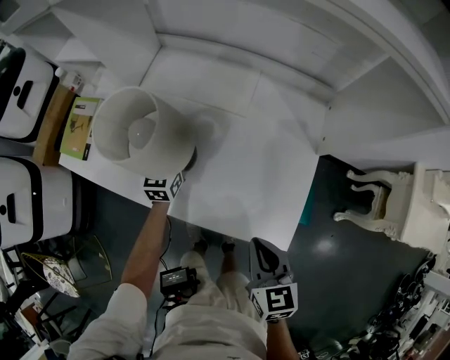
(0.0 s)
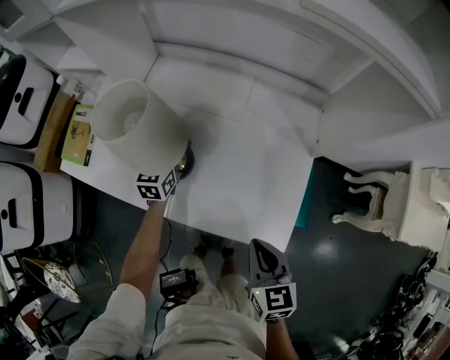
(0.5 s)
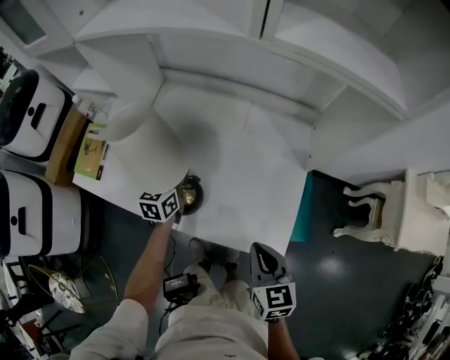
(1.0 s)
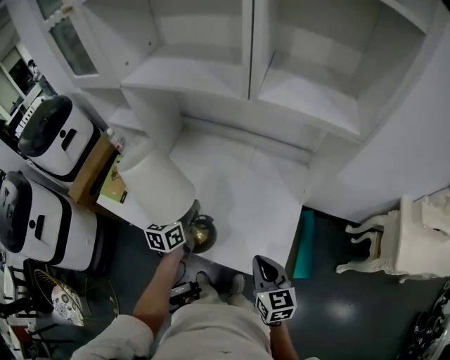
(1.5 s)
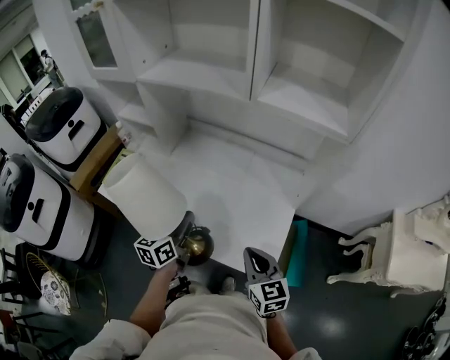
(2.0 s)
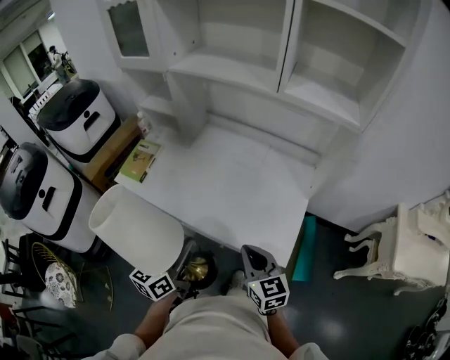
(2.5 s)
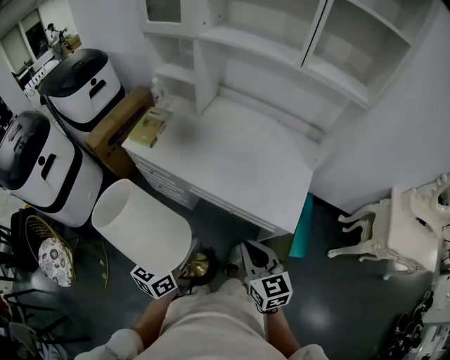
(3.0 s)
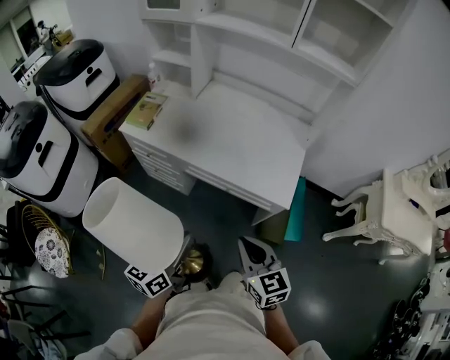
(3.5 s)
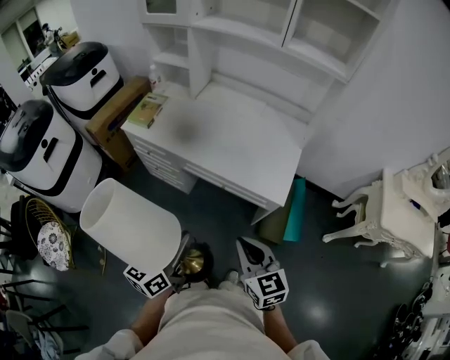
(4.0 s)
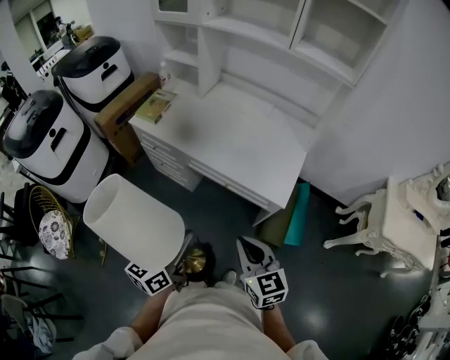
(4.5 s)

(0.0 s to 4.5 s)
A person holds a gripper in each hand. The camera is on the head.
0.0 s - 2.0 s: The right gripper travels upward by some 10 cm; the left gripper is displaced backward and upward by approximately 25 cm, rotates roughly 30 degrees, and closes.
2.0 s - 4.5 s: The two grippers go roughly 40 cm backward.

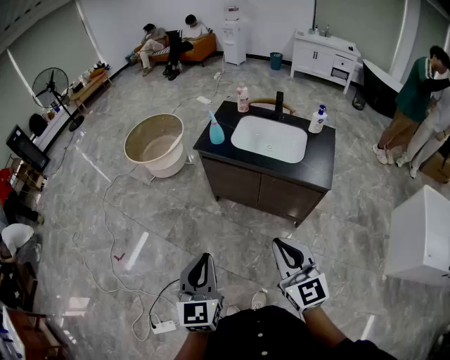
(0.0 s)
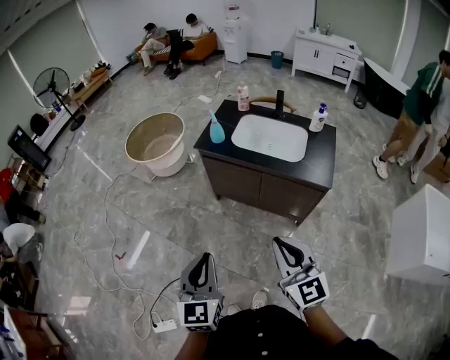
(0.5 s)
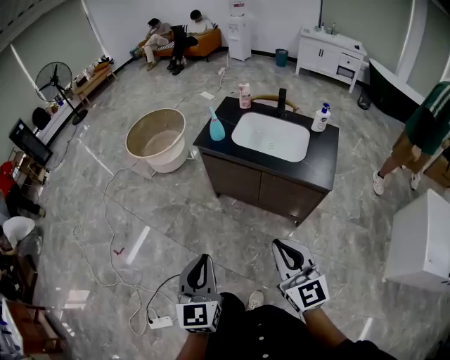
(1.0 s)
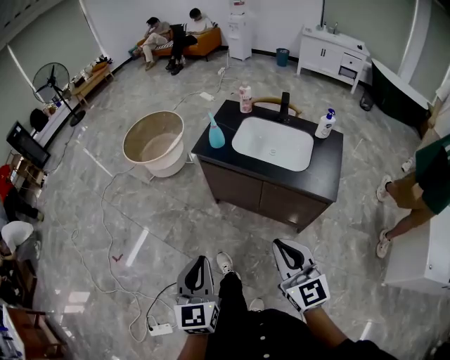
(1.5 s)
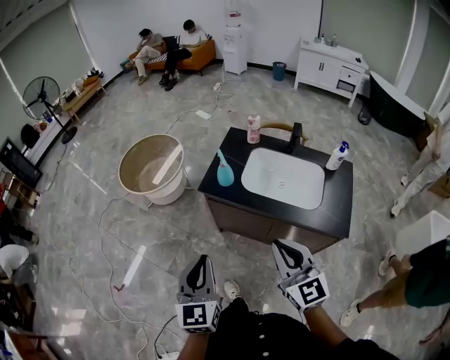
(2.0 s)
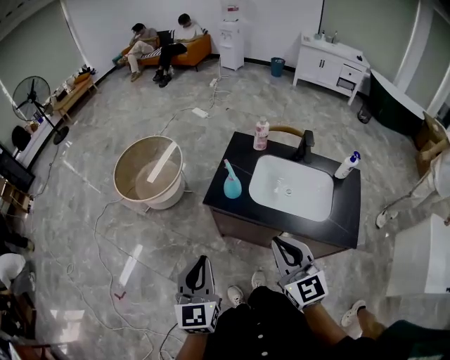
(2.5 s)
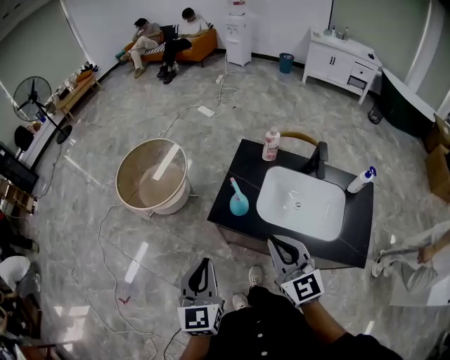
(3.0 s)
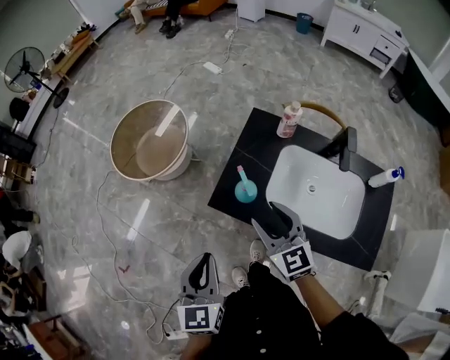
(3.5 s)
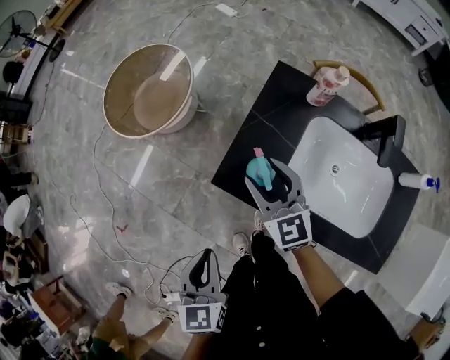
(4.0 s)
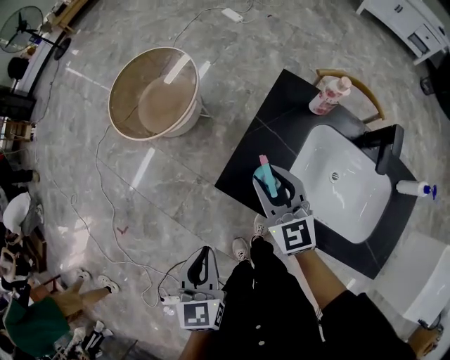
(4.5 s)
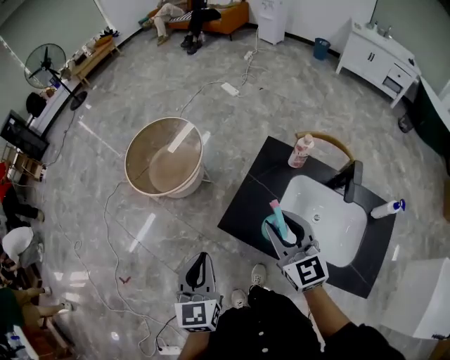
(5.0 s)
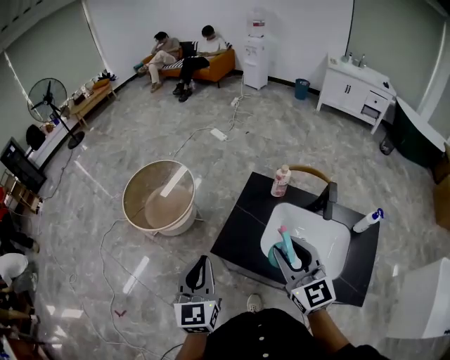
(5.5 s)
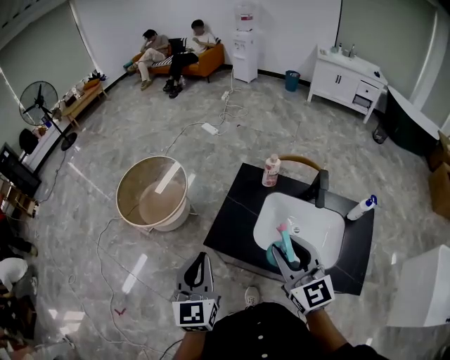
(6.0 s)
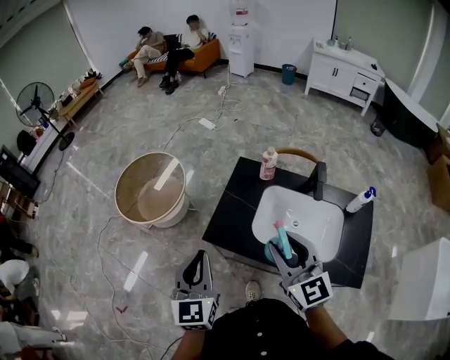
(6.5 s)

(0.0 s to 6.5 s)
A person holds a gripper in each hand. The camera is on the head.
0.0 s - 2.0 s: Both grippers travel together forward, about 25 cm.
2.0 s - 4.5 s: The right gripper shifts roughly 50 cm forward and downward, and opens up, while the left gripper goes roughly 30 cm forward and downward, and swivels approximately 30 degrees.
4.5 s - 6.5 s: The left gripper travels upward by about 15 cm, and rotates some 30 degrees. Meanwhile the right gripper heads upward, backward and to the right, covering about 30 cm.

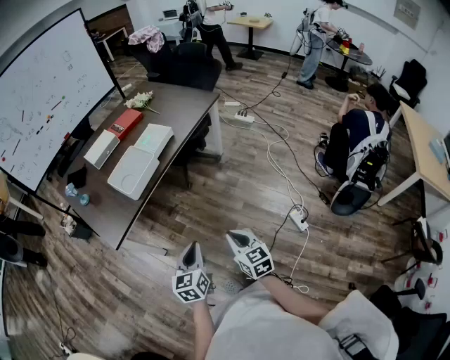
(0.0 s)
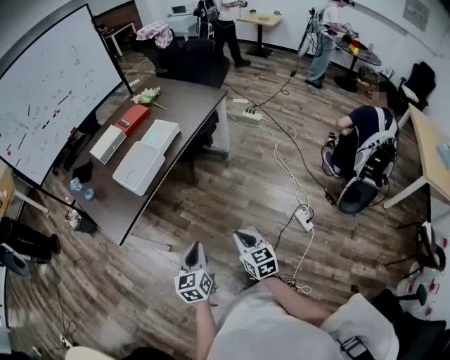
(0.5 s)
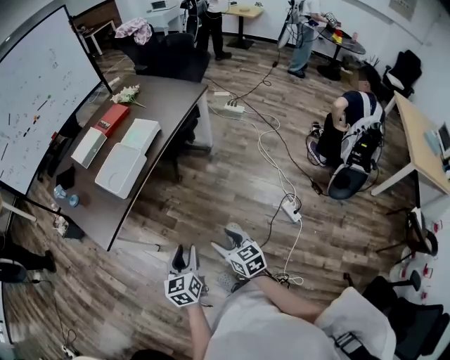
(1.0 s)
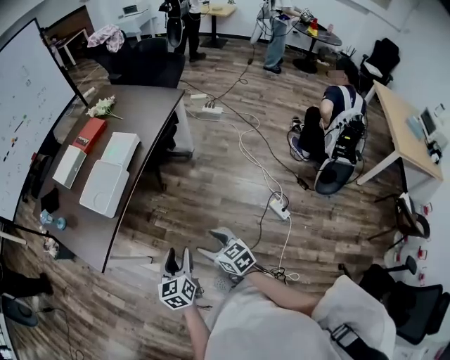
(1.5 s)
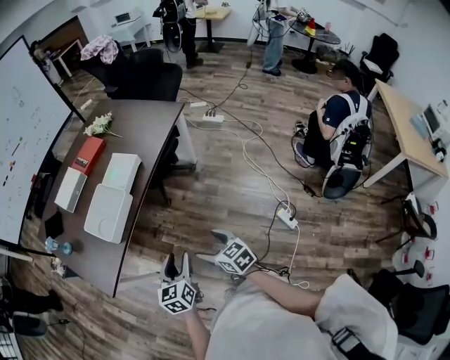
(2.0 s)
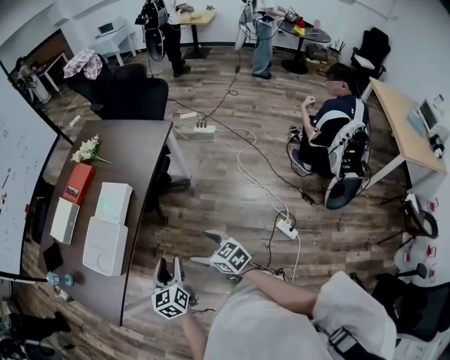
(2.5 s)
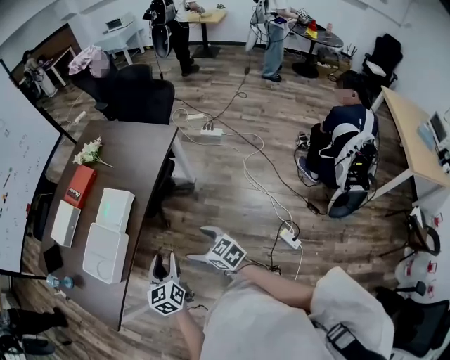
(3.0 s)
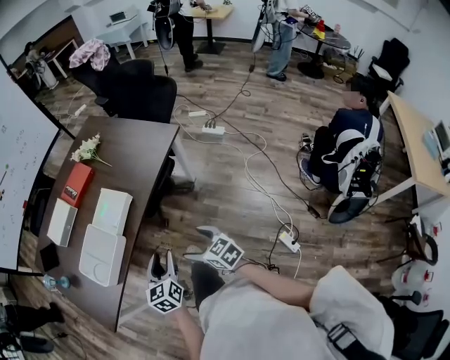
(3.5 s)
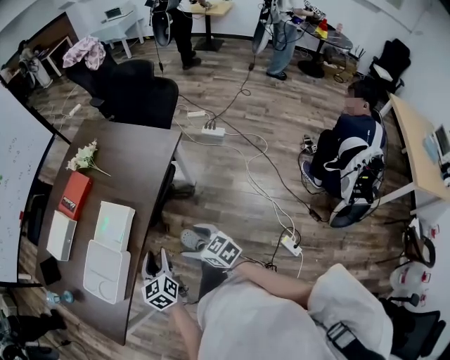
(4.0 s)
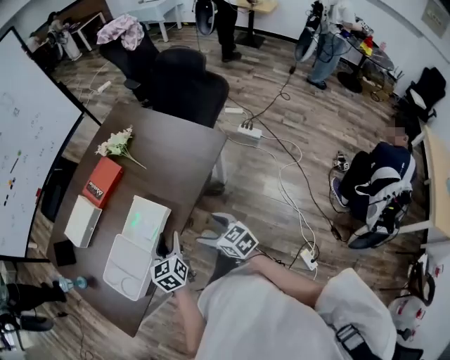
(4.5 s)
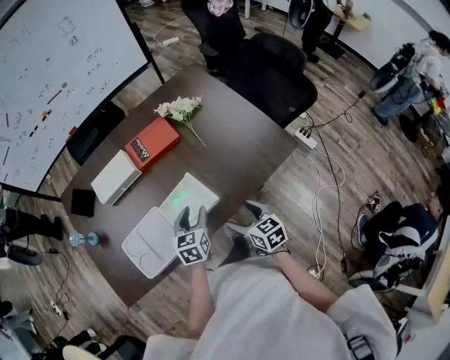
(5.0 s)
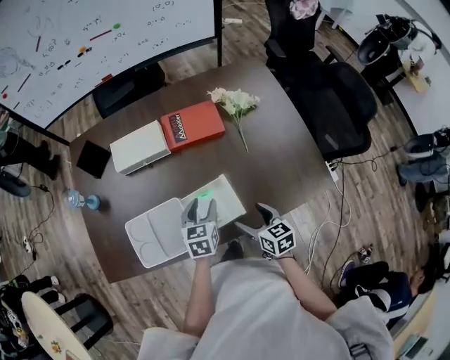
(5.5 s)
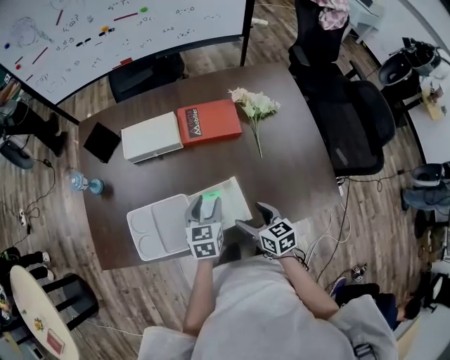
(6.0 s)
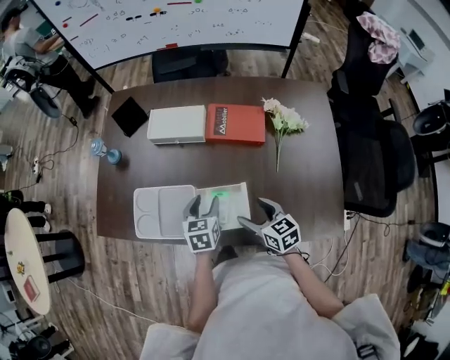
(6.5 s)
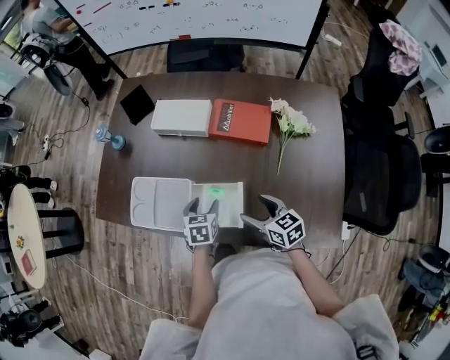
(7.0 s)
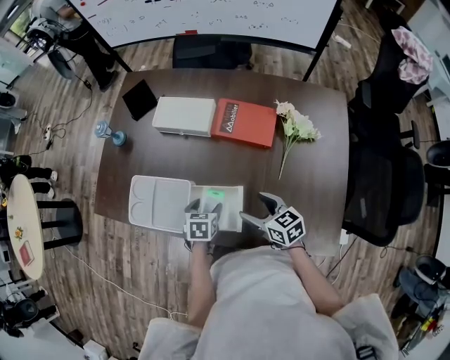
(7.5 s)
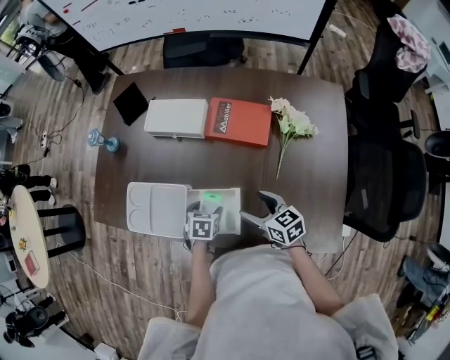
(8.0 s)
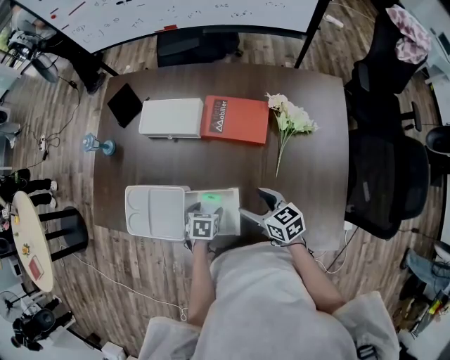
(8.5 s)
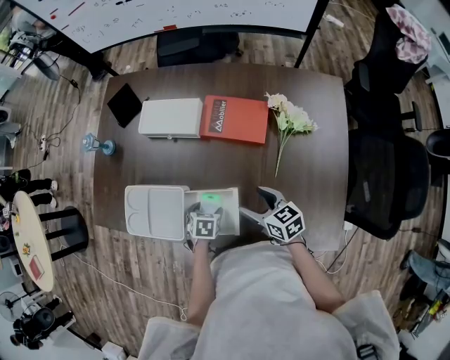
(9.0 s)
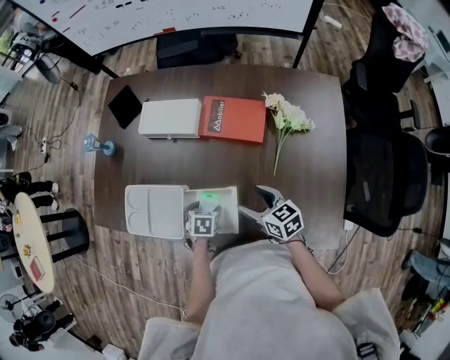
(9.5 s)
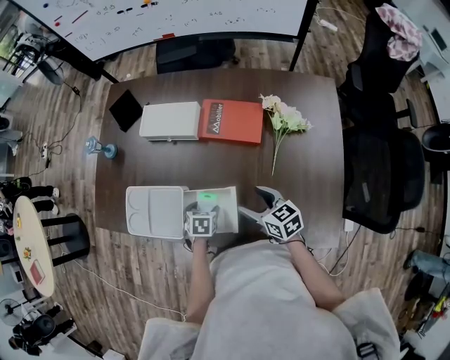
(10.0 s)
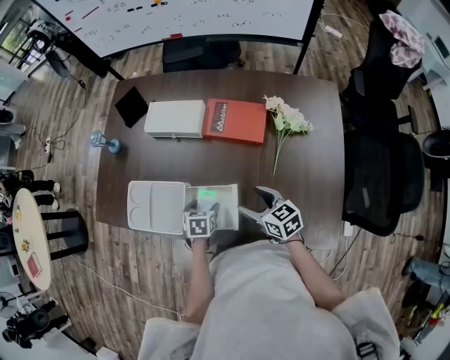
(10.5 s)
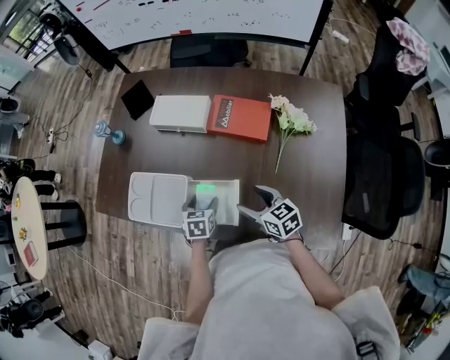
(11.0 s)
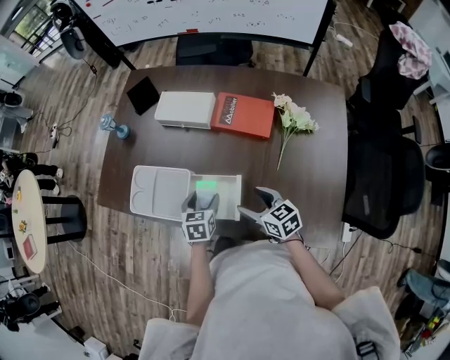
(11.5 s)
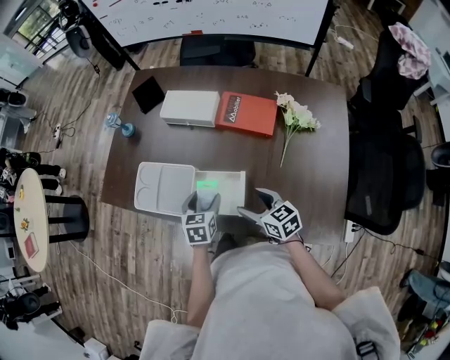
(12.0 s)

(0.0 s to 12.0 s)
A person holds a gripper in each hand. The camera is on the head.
0.0 s - 2.0 s: The two grippers go approximately 15 cm forward. The left gripper opens its fingers. Meanwhile the right gripper opens its fingers.
2.0 s - 4.0 s: The left gripper moves forward, roughly 30 cm, while the right gripper heads forward and to the right, covering some 35 cm.
4.0 s - 6.0 s: The right gripper changes place by roughly 35 cm, and rotates roughly 30 degrees. Meanwhile the left gripper changes place by some 35 cm, and changes its angle by some 30 degrees.
6.0 s - 8.0 s: The left gripper shifts about 10 cm downward, and points its fingers some 30 degrees further downward. The right gripper moves forward and to the right, some 10 cm, and changes its angle by approximately 30 degrees.
8.0 s - 10.0 s: The grippers stay close to where they were, moving slightly.
10.0 s - 12.0 s: The right gripper shifts about 5 cm to the left. Meanwhile the left gripper heads upward, covering approximately 10 cm, and turns by about 30 degrees.

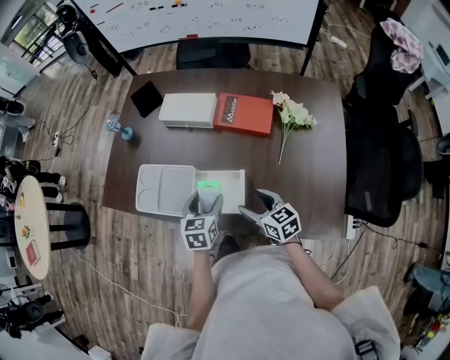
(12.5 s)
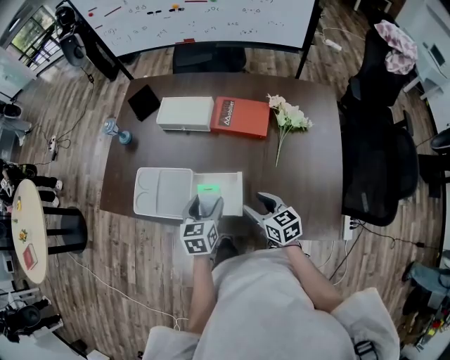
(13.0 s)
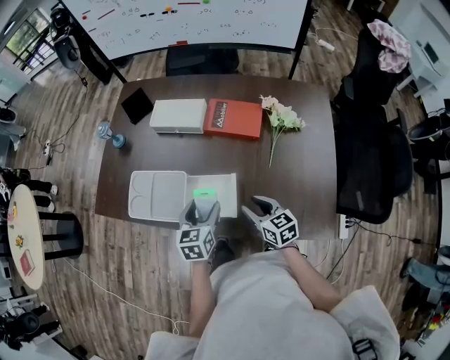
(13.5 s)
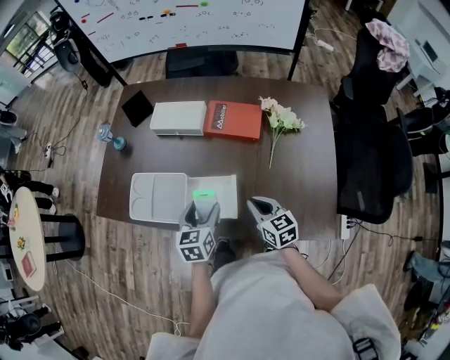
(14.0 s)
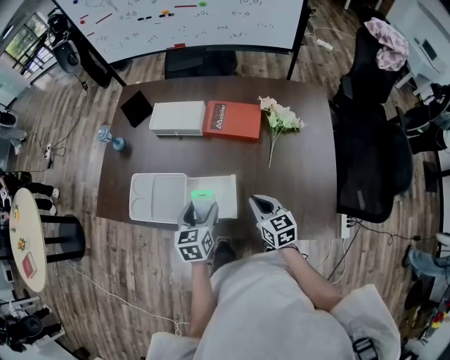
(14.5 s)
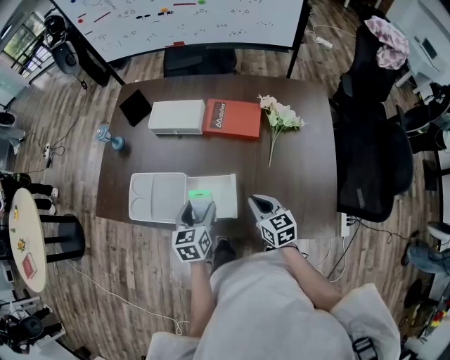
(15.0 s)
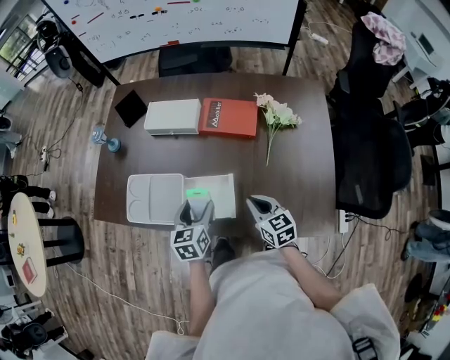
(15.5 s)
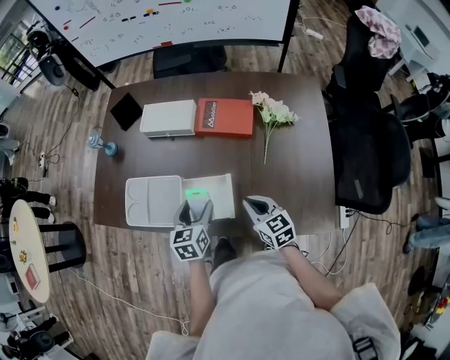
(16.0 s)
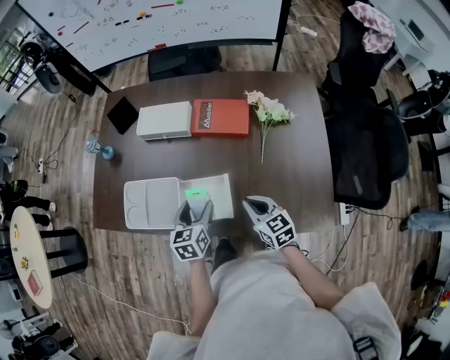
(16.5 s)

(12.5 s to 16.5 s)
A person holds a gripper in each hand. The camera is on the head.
12.5 s - 14.5 s: The right gripper changes place by about 5 cm, and closes its fingers.
14.5 s - 16.5 s: The grippers stay close to where they were, moving slightly.
